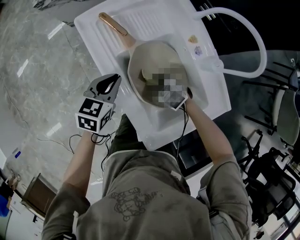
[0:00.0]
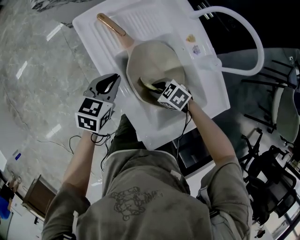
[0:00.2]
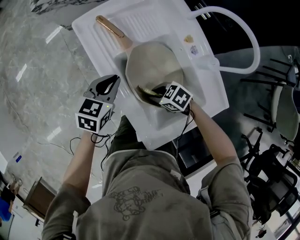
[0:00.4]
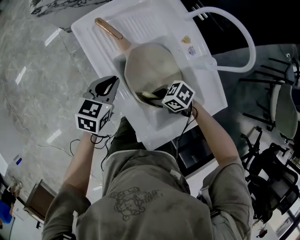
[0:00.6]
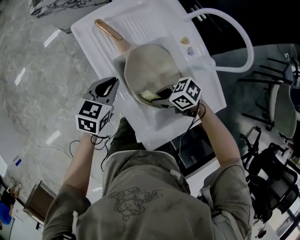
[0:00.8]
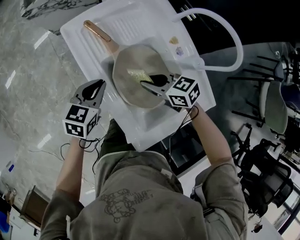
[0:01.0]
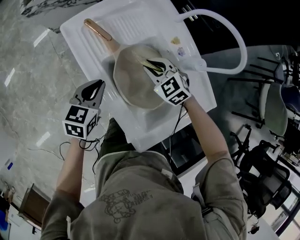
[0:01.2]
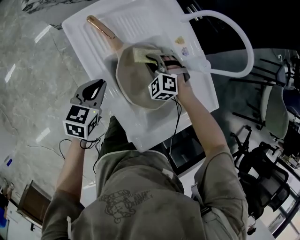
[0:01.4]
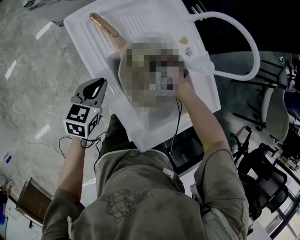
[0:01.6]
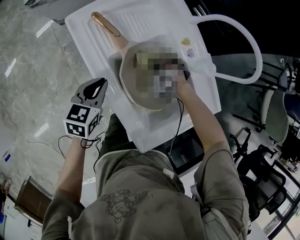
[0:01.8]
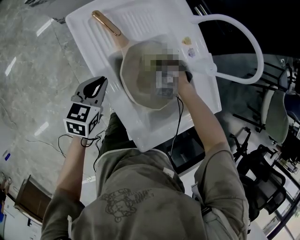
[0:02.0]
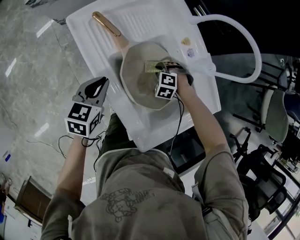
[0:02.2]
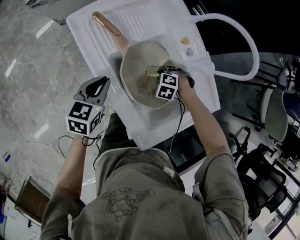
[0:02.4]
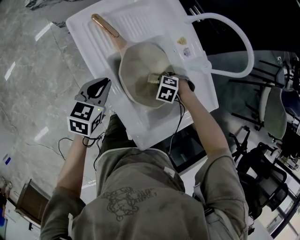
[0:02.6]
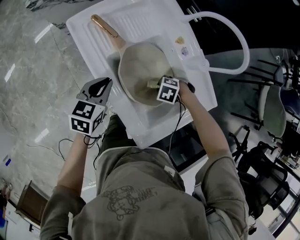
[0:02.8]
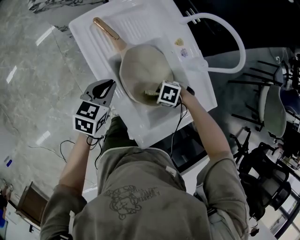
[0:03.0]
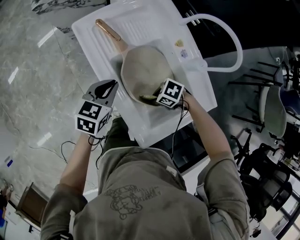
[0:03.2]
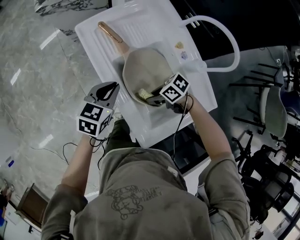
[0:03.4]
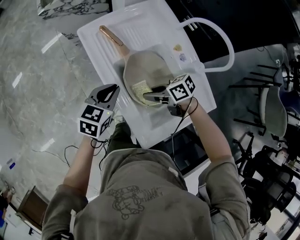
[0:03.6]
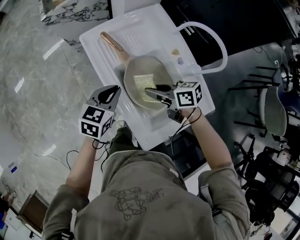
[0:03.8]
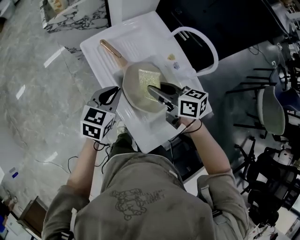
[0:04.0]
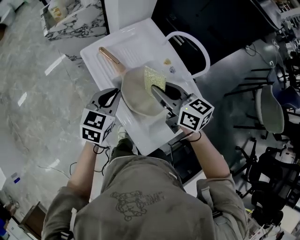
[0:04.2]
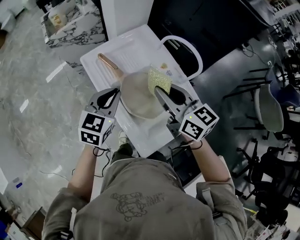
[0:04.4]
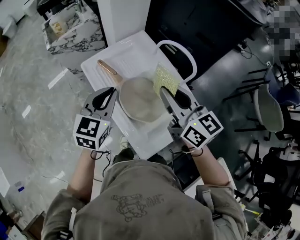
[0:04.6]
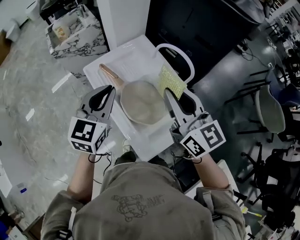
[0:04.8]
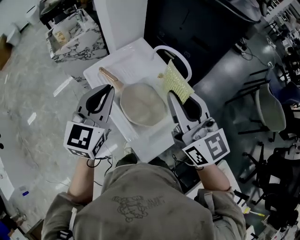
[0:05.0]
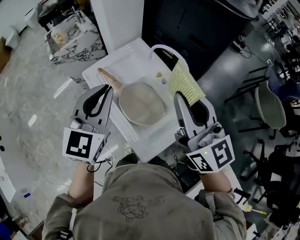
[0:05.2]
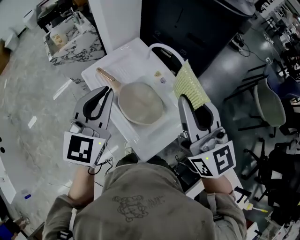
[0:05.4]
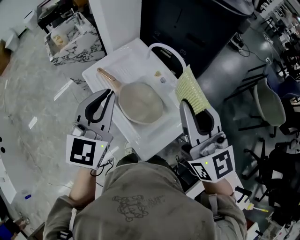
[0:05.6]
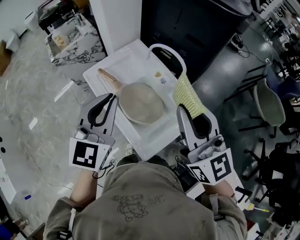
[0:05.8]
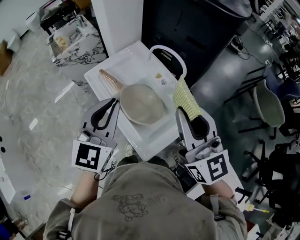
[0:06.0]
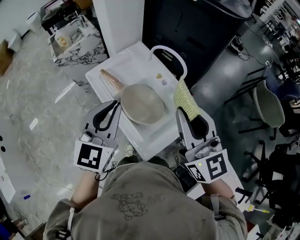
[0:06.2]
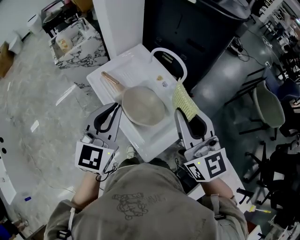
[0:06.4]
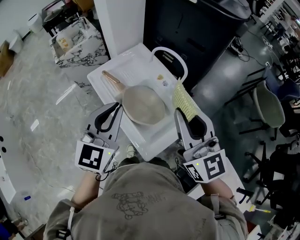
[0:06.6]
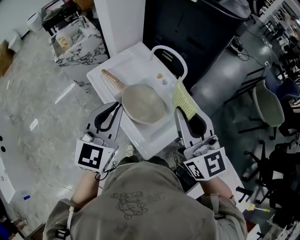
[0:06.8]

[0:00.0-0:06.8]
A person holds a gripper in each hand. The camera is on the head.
0:00.0 to 0:01.4: The right gripper ends up about 10 cm from where it was, and turns by some 40 degrees.
0:01.4 to 0:02.8: The right gripper ends up some 15 cm from where it was, and angles its fingers downward, by roughly 30 degrees.
0:02.8 to 0:04.0: The left gripper shifts some 10 cm upward. The right gripper shifts some 30 cm upward, and tilts its fingers about 60 degrees upward.
0:04.0 to 0:05.4: The two grippers go roughly 30 cm upward. The left gripper turns by approximately 30 degrees, while the right gripper rotates approximately 60 degrees.
0:05.4 to 0:06.8: The left gripper is displaced backward by about 5 cm. Meanwhile the right gripper shifts by approximately 5 cm.

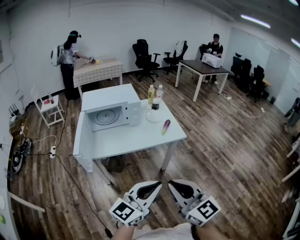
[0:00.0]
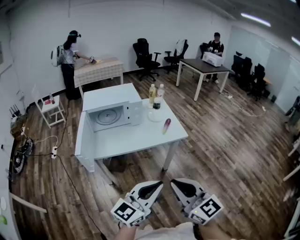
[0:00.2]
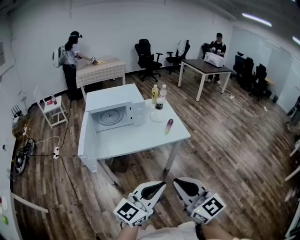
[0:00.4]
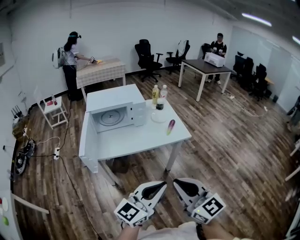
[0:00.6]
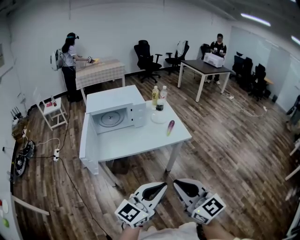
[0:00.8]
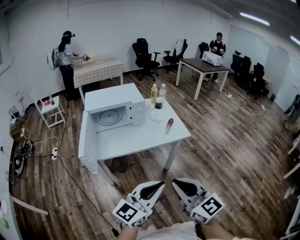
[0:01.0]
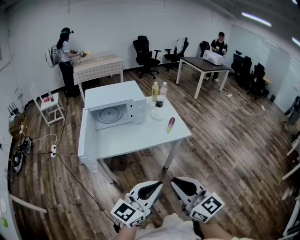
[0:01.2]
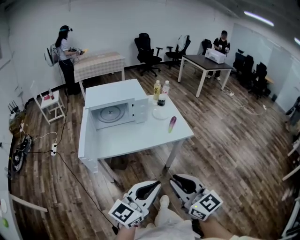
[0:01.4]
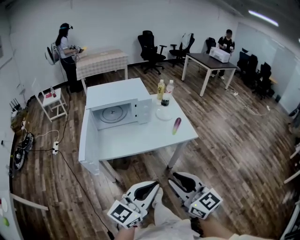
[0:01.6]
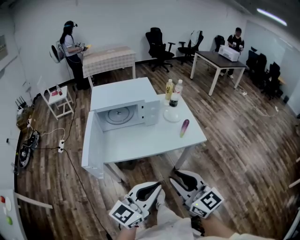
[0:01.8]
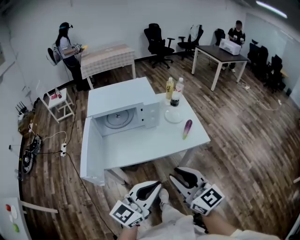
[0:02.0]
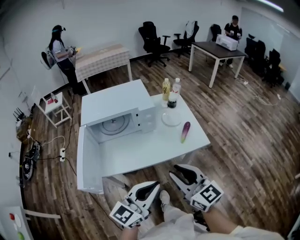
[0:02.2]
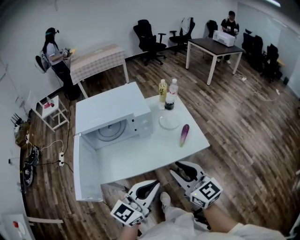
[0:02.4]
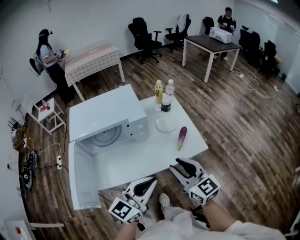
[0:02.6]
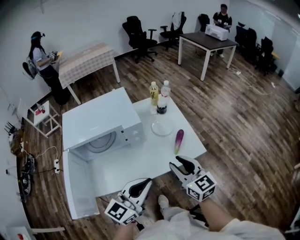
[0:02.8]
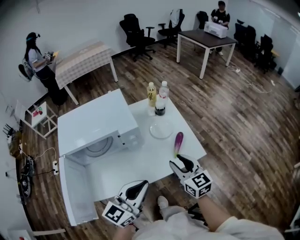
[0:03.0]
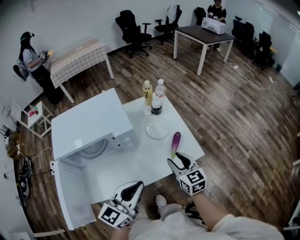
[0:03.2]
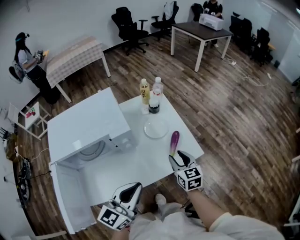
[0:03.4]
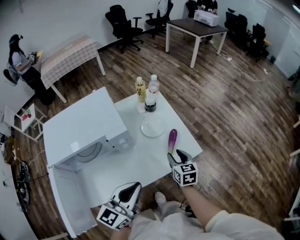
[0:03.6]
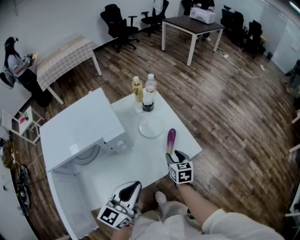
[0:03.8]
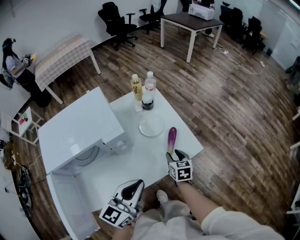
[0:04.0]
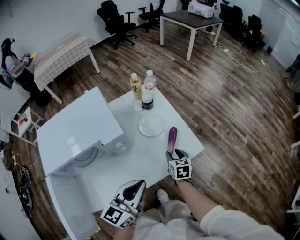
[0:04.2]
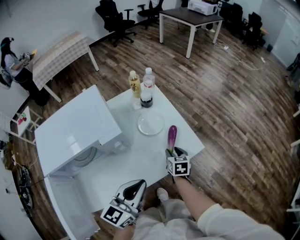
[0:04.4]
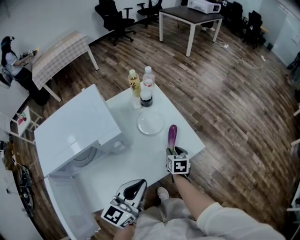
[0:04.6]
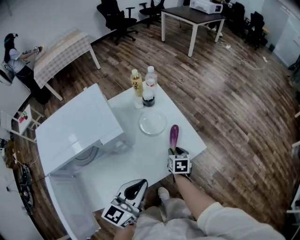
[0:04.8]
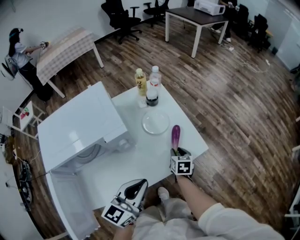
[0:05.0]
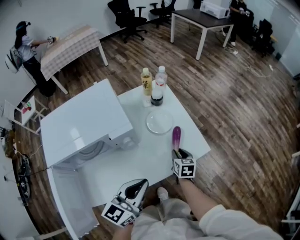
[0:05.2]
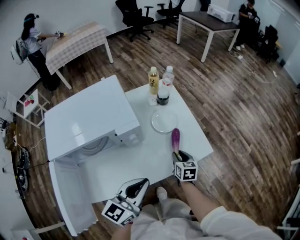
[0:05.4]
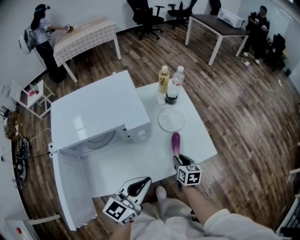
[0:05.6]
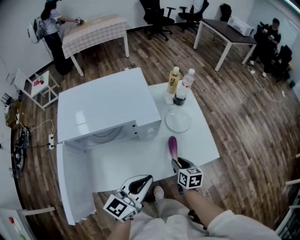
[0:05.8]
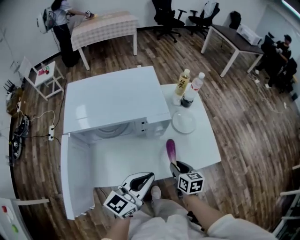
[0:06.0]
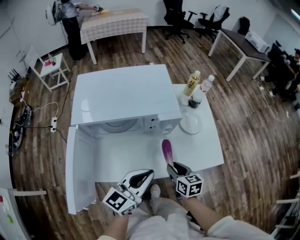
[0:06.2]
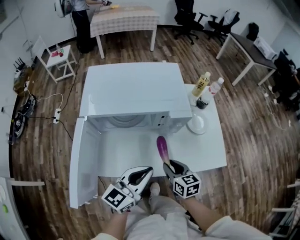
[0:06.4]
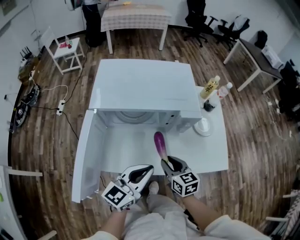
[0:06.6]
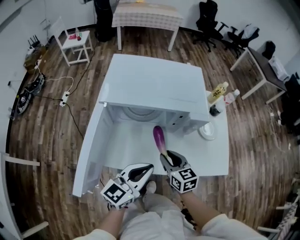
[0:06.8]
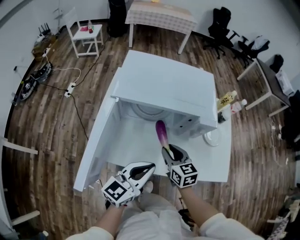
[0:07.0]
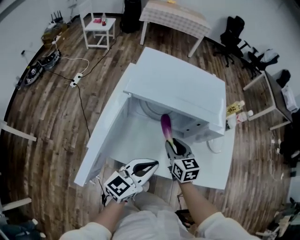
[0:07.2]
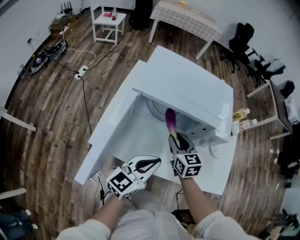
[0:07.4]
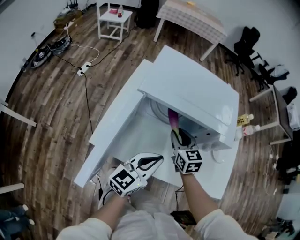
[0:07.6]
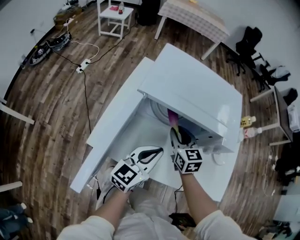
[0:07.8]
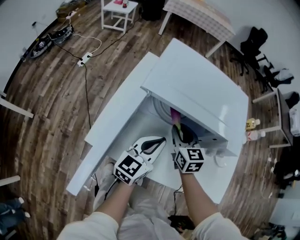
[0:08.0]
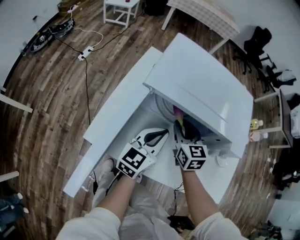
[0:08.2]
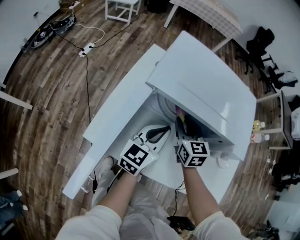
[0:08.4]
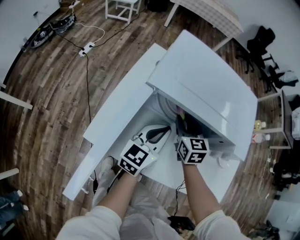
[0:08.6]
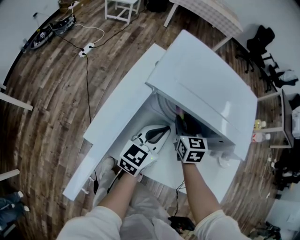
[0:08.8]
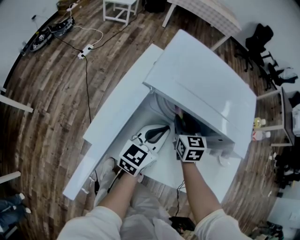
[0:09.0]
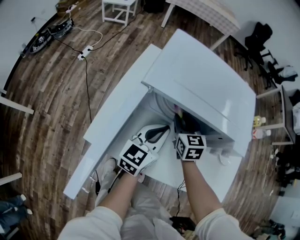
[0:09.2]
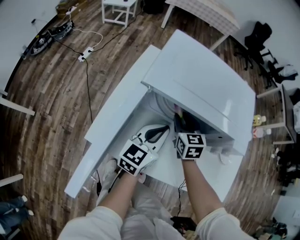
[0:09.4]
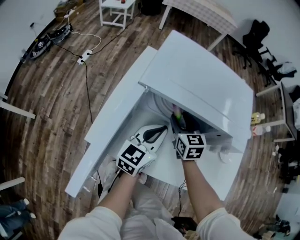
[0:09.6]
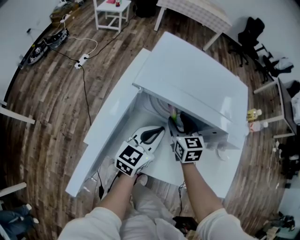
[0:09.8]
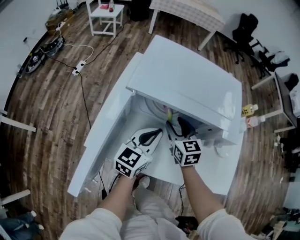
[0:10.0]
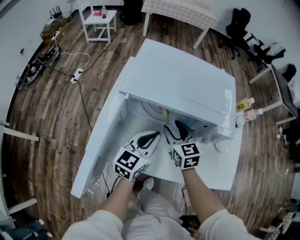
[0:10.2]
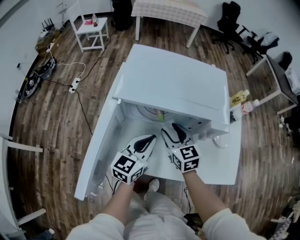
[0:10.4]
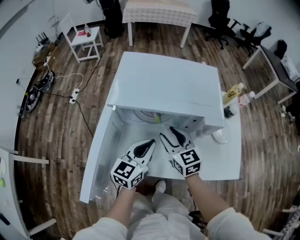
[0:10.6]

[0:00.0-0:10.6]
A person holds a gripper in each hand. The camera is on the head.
0:00.0 to 0:01.6: The left gripper goes roughly 10 cm to the left and forward, while the right gripper heads forward and to the left, covering approximately 10 cm.
0:01.6 to 0:03.0: The grippers both shift forward by approximately 35 cm.
0:03.0 to 0:04.6: The left gripper travels forward and downward by approximately 10 cm; the right gripper is displaced downward and forward by about 25 cm, and tilts its fingers some 30 degrees downward.
0:04.6 to 0:06.0: The left gripper is displaced to the left by roughly 5 cm. Meanwhile the right gripper goes approximately 15 cm backward, to the left and upward, and changes its angle by some 30 degrees.
0:06.0 to 0:07.6: The right gripper moves to the left and forward, roughly 30 cm, and swivels about 40 degrees. The left gripper moves to the left, about 15 cm, and turns by approximately 20 degrees.
0:07.6 to 0:09.0: The right gripper travels forward by approximately 5 cm; the left gripper is displaced forward and downward by approximately 15 cm.
0:09.0 to 0:10.6: The left gripper heads backward, covering some 5 cm. Meanwhile the right gripper travels backward and upward by approximately 10 cm.

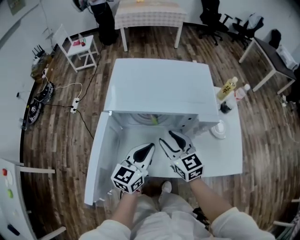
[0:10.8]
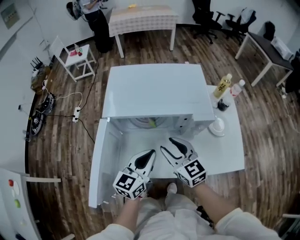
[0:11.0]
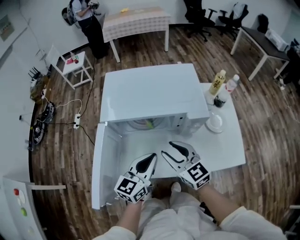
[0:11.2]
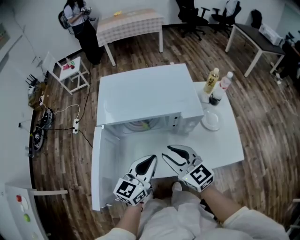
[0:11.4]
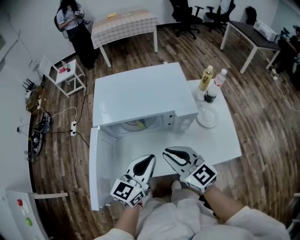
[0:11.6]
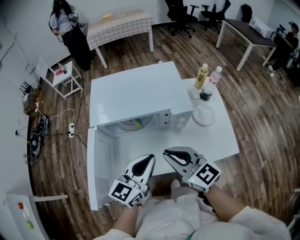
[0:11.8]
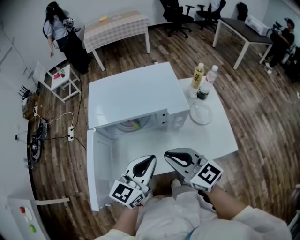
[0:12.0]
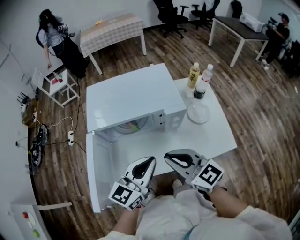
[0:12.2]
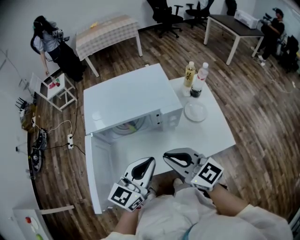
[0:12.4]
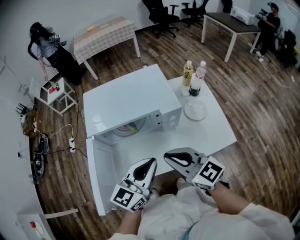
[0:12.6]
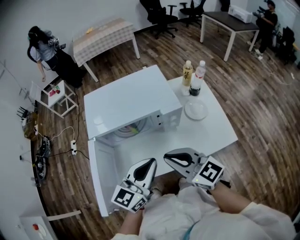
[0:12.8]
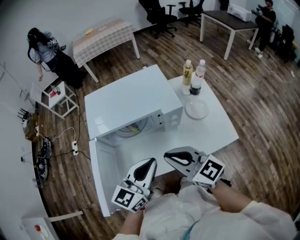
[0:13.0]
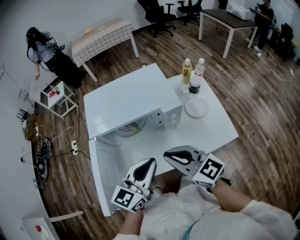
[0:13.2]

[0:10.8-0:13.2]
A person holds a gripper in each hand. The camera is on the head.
0:10.8 to 0:12.0: The right gripper heads backward, upward and to the right, covering some 15 cm, and closes its fingers, while the left gripper goes some 15 cm upward, backward and to the right.
0:12.0 to 0:13.2: The grippers stay close to where they were, moving slightly.

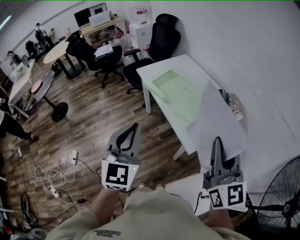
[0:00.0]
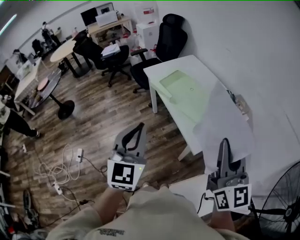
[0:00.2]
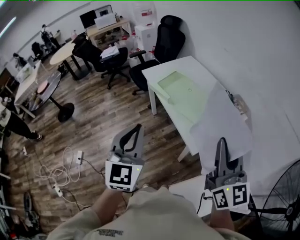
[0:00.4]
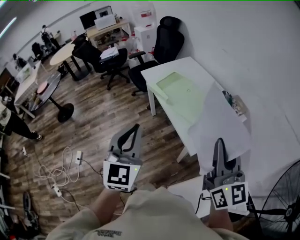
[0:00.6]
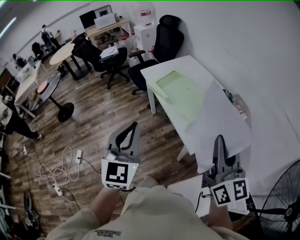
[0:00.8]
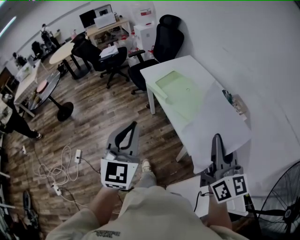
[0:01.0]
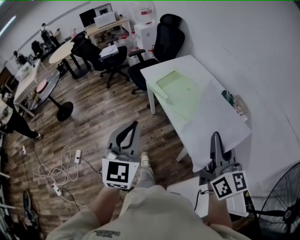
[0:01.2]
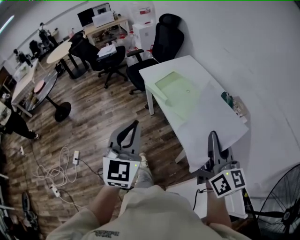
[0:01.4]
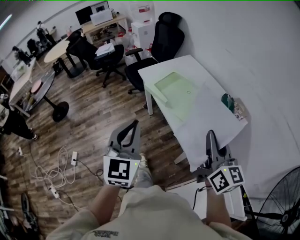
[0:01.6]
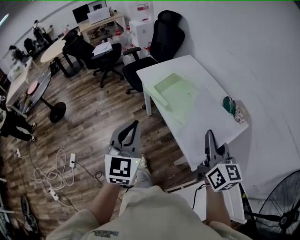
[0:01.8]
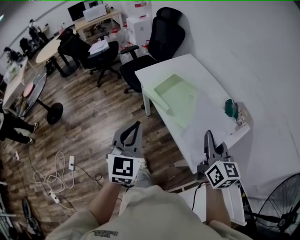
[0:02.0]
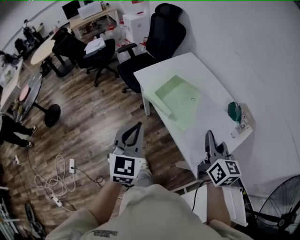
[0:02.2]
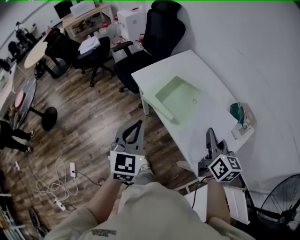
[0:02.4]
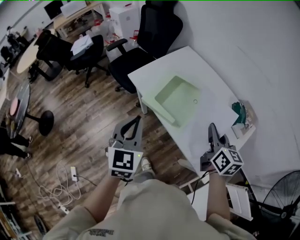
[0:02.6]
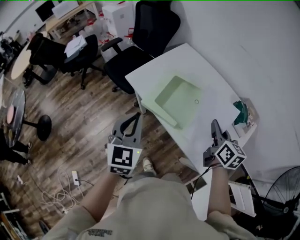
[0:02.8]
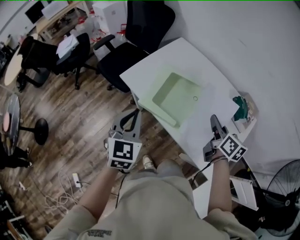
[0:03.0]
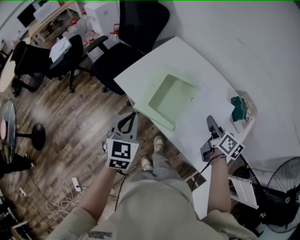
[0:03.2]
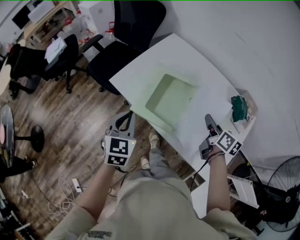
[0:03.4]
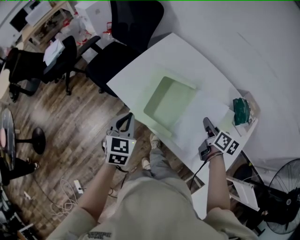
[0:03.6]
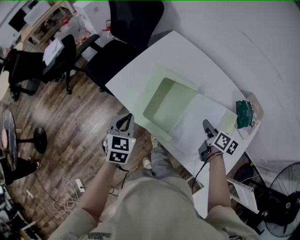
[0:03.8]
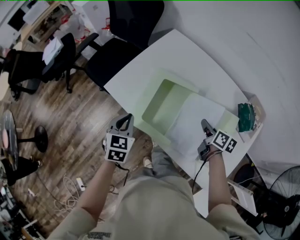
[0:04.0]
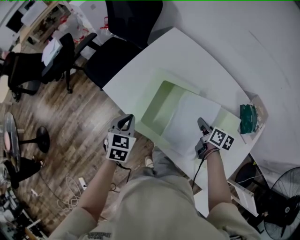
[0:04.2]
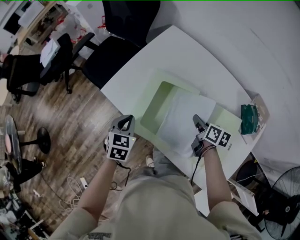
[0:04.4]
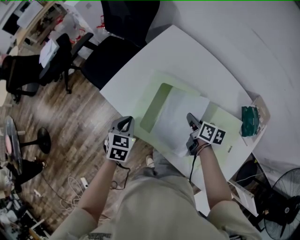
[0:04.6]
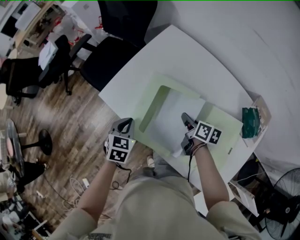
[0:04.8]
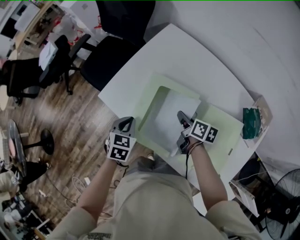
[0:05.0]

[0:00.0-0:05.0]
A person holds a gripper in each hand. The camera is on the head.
0:00.0 to 0:01.6: The right gripper travels forward and downward by approximately 10 cm. The left gripper goes approximately 5 cm forward.
0:01.6 to 0:03.4: Both grippers move forward and downward, roughly 50 cm. The right gripper turns by some 40 degrees. The left gripper turns by about 30 degrees.
0:03.4 to 0:05.0: The left gripper moves downward and forward, roughly 20 cm, and turns by some 20 degrees. Meanwhile the right gripper heads downward, forward and to the left, covering about 25 cm, and swivels approximately 20 degrees.
